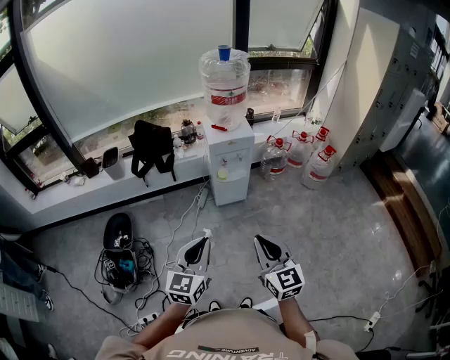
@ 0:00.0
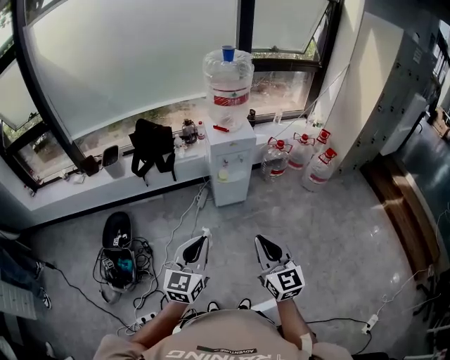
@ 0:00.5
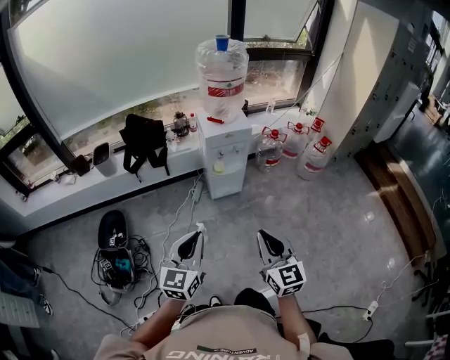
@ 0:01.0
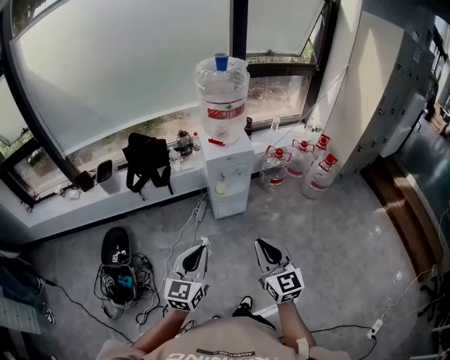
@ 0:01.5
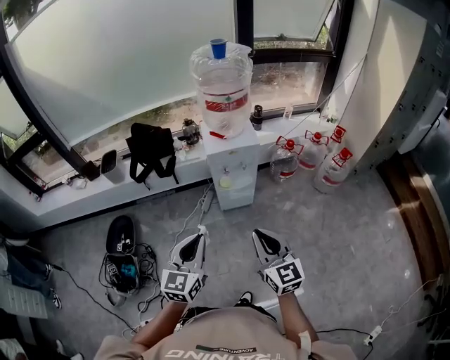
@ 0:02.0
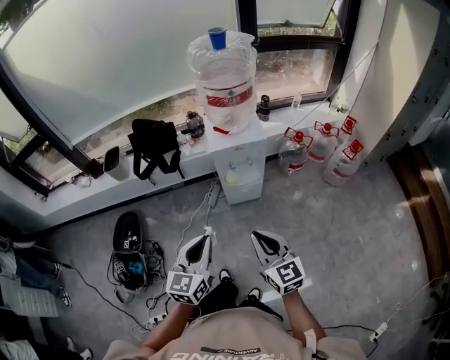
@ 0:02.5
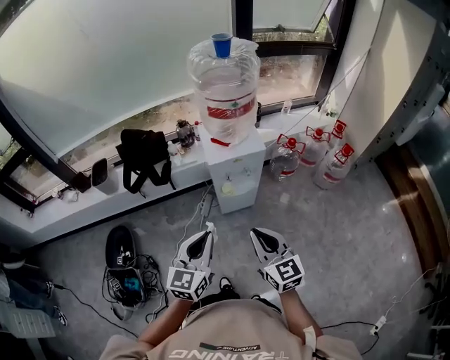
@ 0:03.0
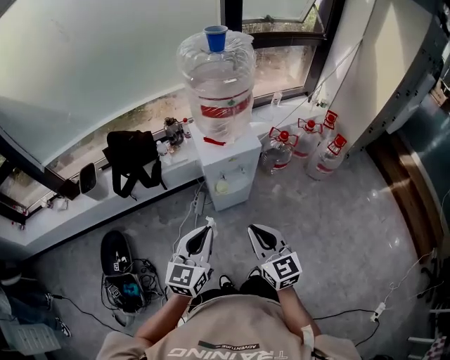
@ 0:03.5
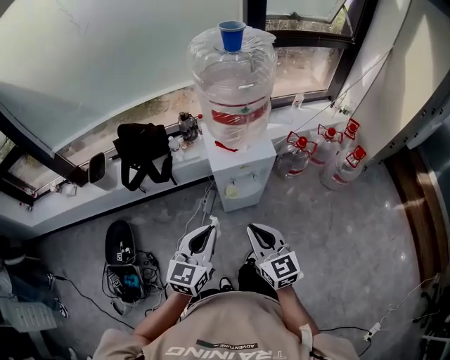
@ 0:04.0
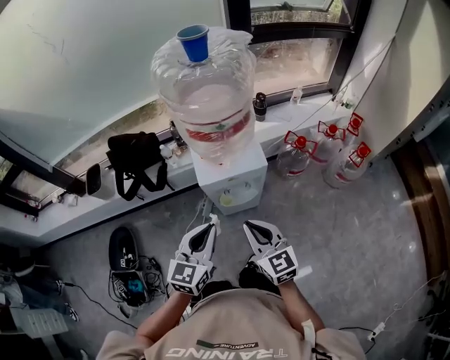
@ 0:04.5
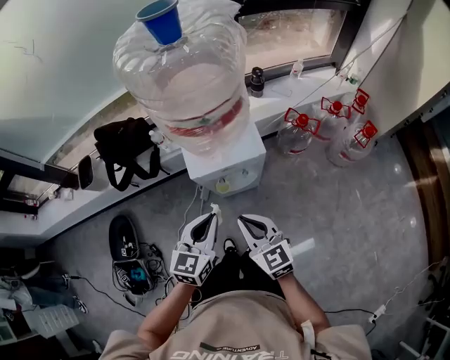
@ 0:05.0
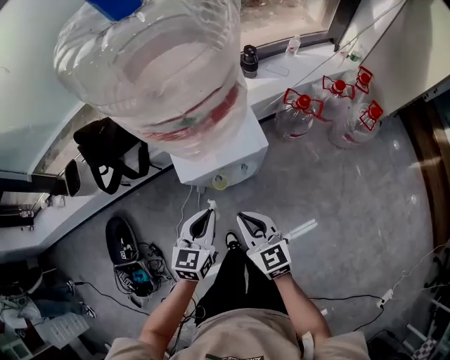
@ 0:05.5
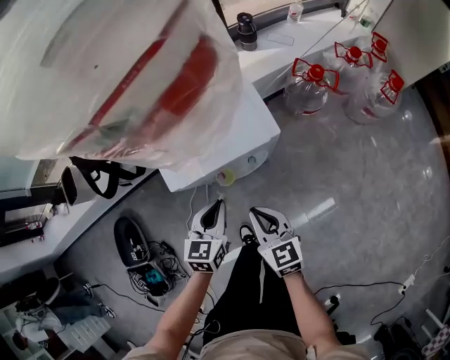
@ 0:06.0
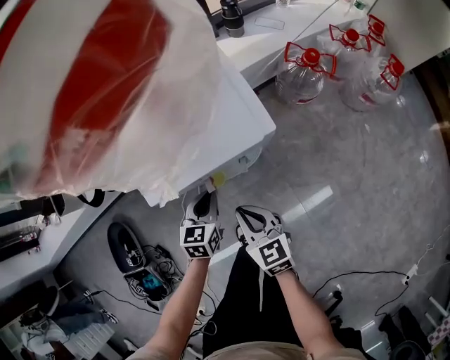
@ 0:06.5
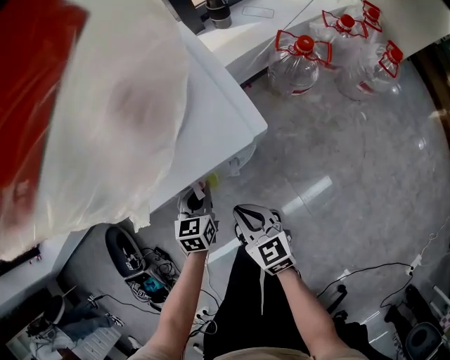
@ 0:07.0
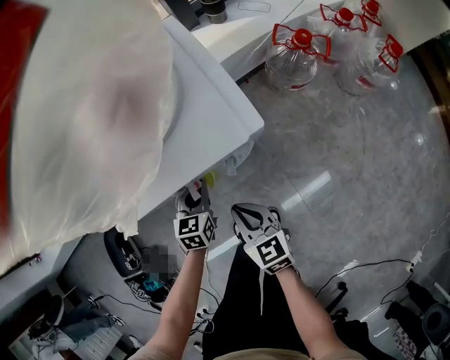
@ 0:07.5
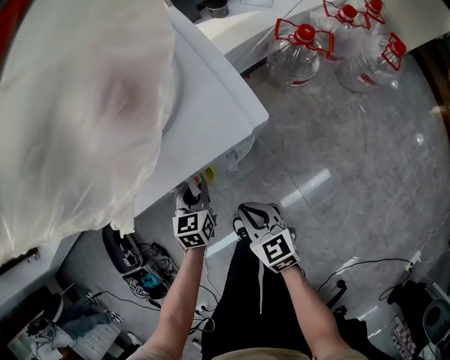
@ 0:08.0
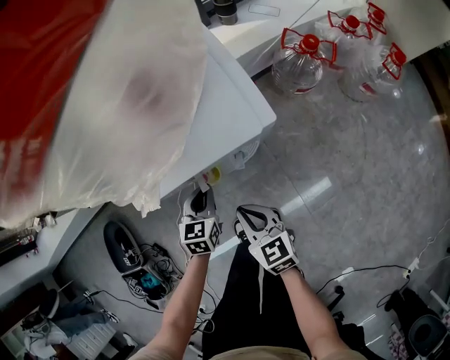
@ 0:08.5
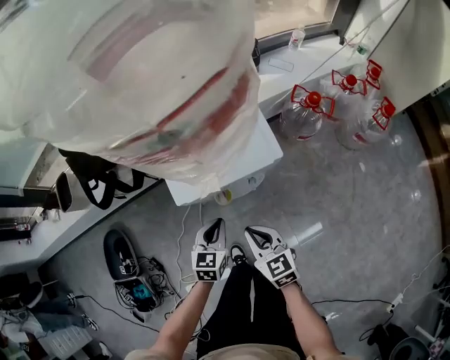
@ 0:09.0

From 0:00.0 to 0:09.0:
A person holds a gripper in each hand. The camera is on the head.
From 0:00.0 to 0:02.0: The two grippers go about 15 cm forward.
From 0:02.0 to 0:04.5: Both grippers move forward, some 30 cm.
From 0:04.5 to 0:07.0: The right gripper heads downward, covering approximately 35 cm, and rotates roughly 20 degrees. Meanwhile the left gripper travels downward and forward by about 50 cm, and changes its angle by roughly 30 degrees.
From 0:07.0 to 0:09.0: The left gripper shifts approximately 10 cm upward and backward. The right gripper is displaced upward by approximately 10 cm.

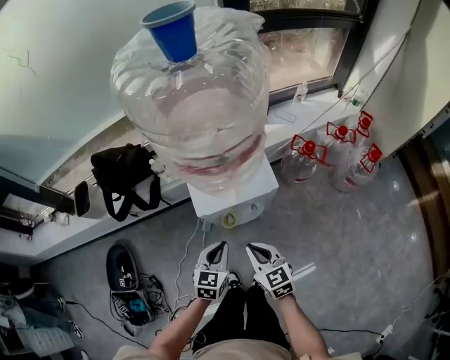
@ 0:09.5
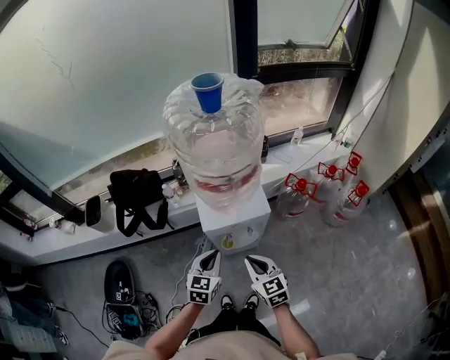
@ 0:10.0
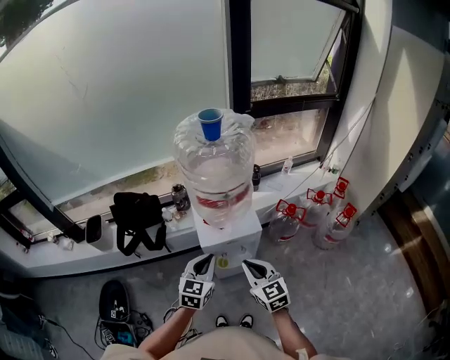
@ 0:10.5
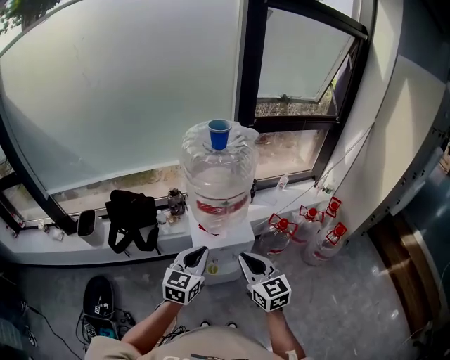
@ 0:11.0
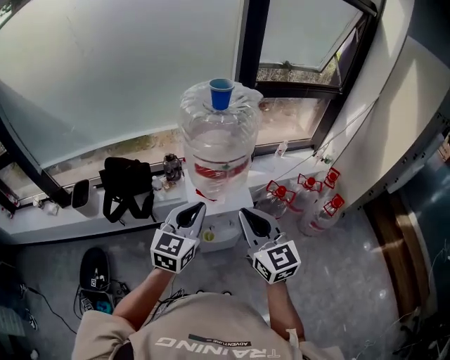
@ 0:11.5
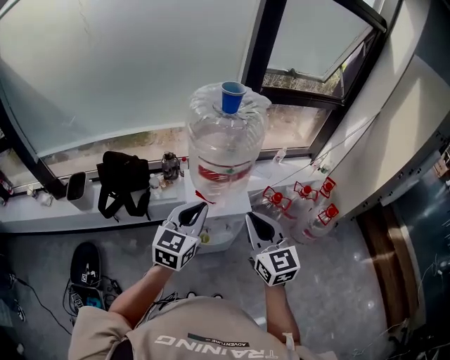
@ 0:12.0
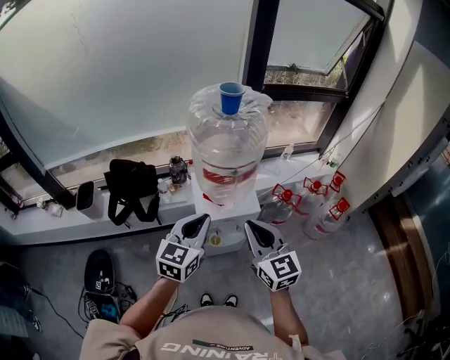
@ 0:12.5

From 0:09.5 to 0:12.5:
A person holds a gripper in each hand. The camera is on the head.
From 0:09.5 to 0:11.0: Both grippers travel together upward, approximately 30 cm.

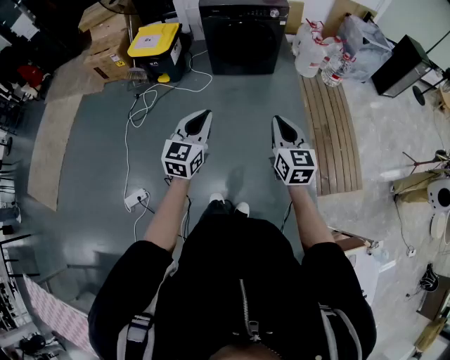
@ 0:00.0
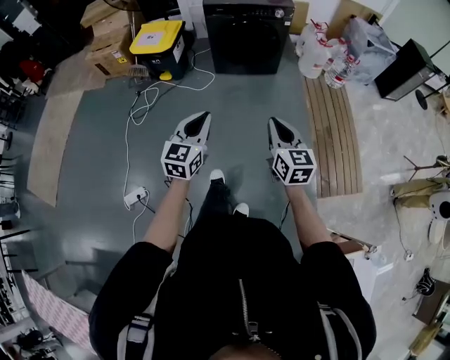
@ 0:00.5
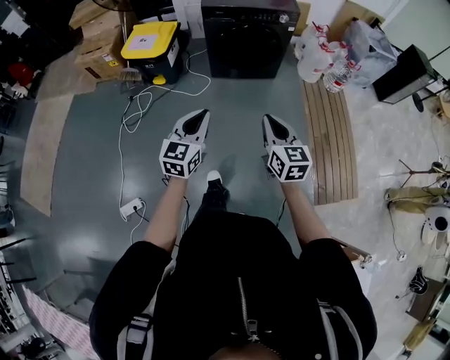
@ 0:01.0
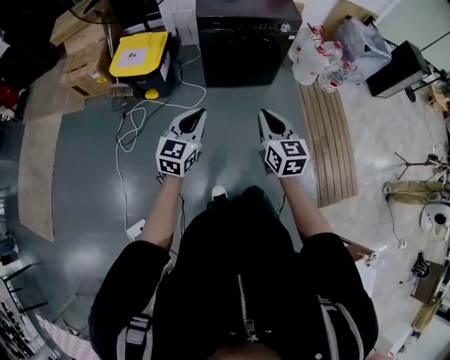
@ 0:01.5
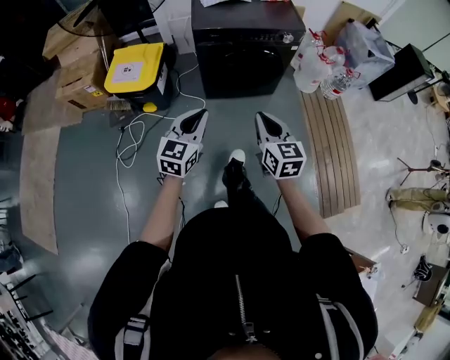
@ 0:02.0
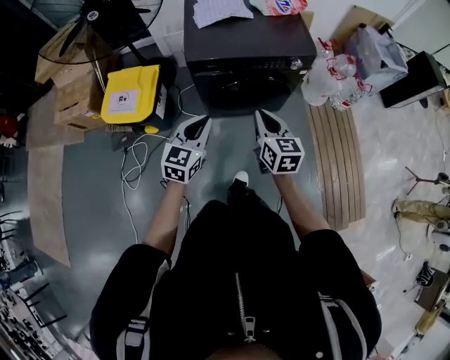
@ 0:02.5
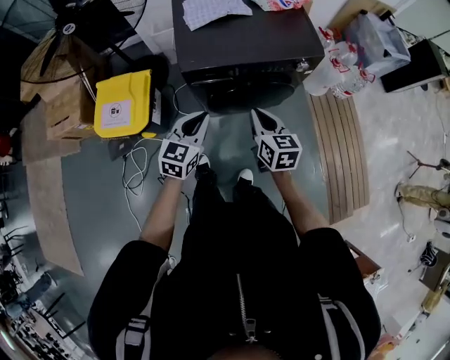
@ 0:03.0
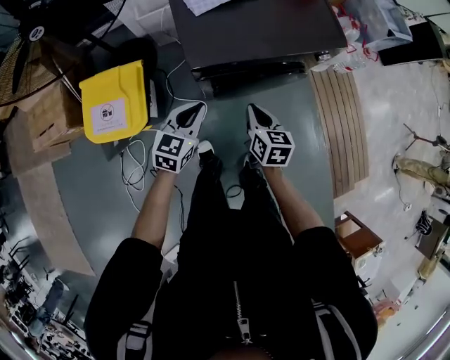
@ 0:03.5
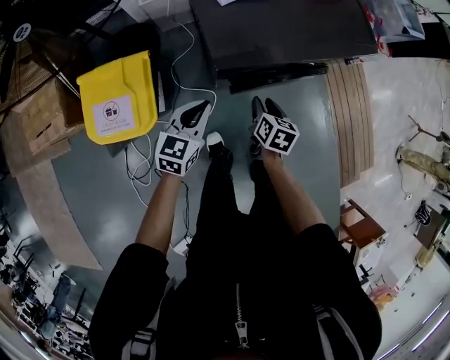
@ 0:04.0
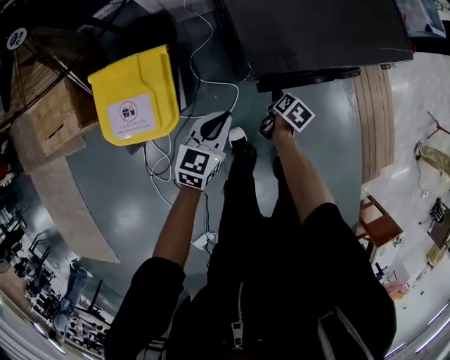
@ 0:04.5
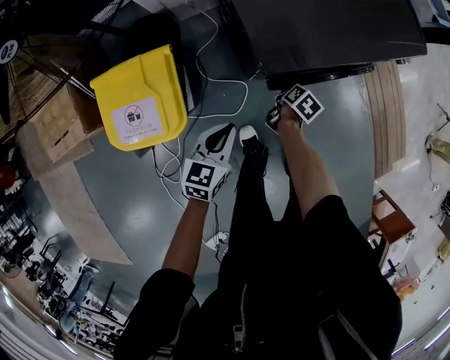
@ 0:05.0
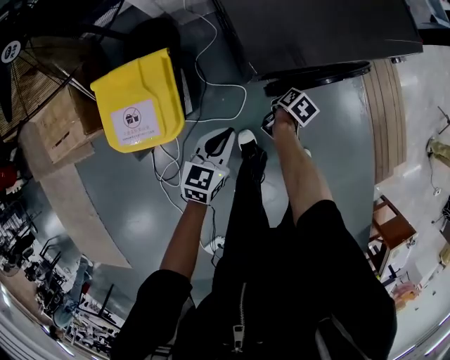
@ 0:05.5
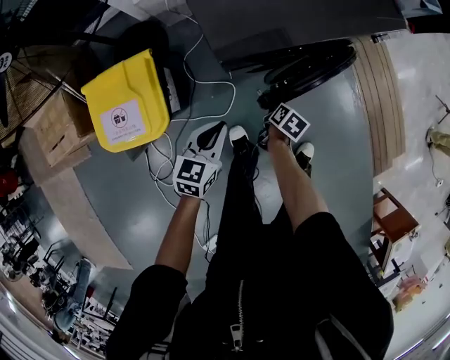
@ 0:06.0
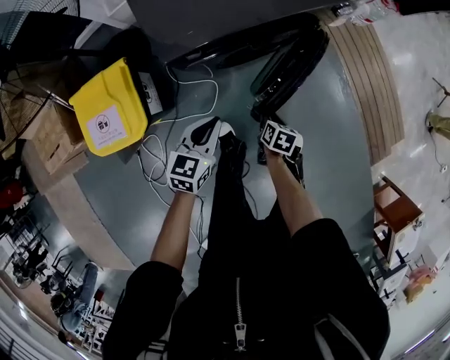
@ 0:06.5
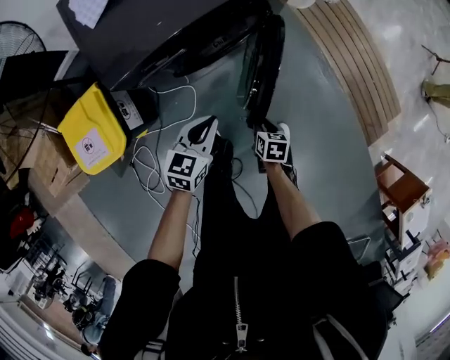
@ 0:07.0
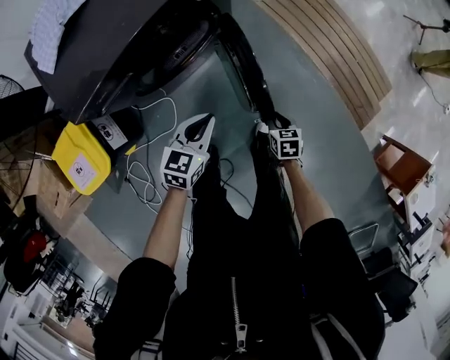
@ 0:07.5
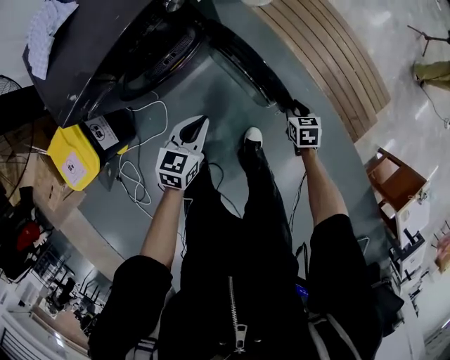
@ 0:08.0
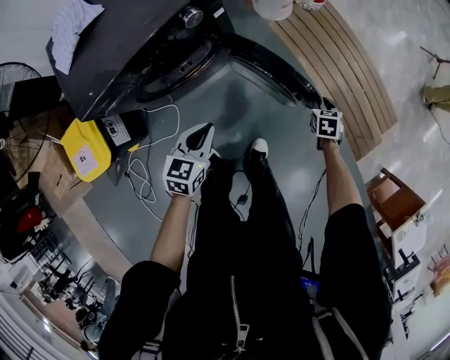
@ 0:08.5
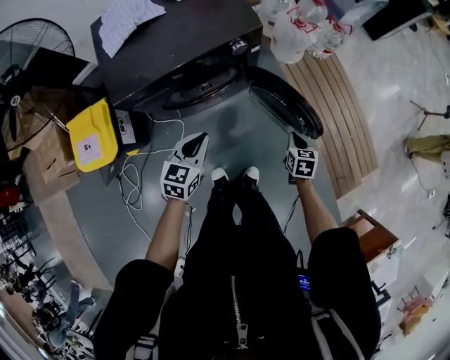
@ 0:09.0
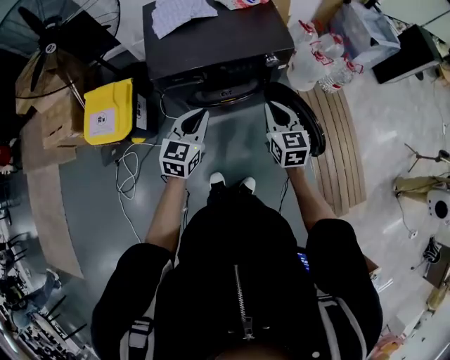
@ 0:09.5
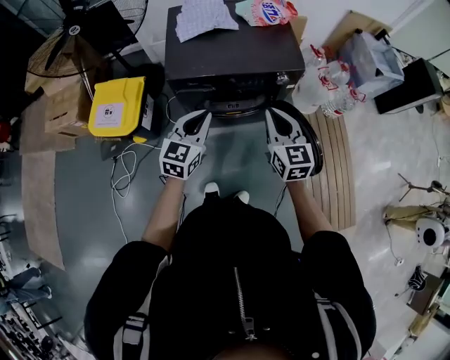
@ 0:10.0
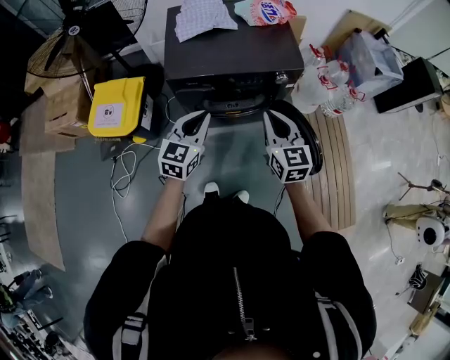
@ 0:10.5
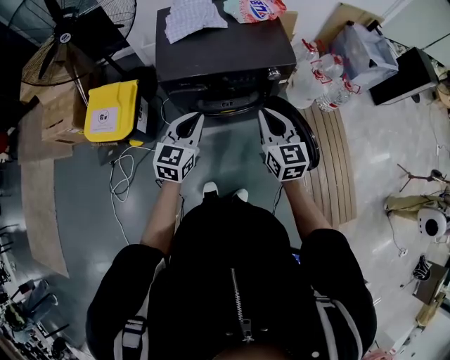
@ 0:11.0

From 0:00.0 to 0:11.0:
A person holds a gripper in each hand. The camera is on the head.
From 0:00.0 to 0:02.0: The pair of grippers is taken forward, roughly 40 cm.
From 0:02.0 to 0:03.5: Both grippers are carried forward, roughly 40 cm. The right gripper moves downward, approximately 15 cm, and rotates about 30 degrees; the left gripper swivels approximately 20 degrees.
From 0:03.5 to 0:05.5: The right gripper shifts some 30 cm downward, changes its angle by some 50 degrees, and opens; the left gripper goes approximately 15 cm downward and to the left.
From 0:05.5 to 0:07.5: The two grippers travel together, to the right, roughly 40 cm. The left gripper turns by about 20 degrees. Meanwhile the right gripper swivels about 30 degrees.
From 0:07.5 to 0:09.0: The right gripper shifts some 20 cm upward and forward, moves approximately 20 cm to the right and comes back, and closes. Meanwhile the left gripper moves upward, about 10 cm, and swivels about 20 degrees.
From 0:09.0 to 0:11.0: The left gripper heads upward and to the left, covering about 20 cm, and rotates some 20 degrees, while the right gripper travels upward and to the left by about 40 cm, and points its fingers some 40 degrees further upward.

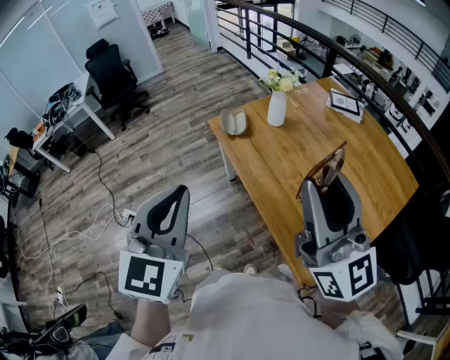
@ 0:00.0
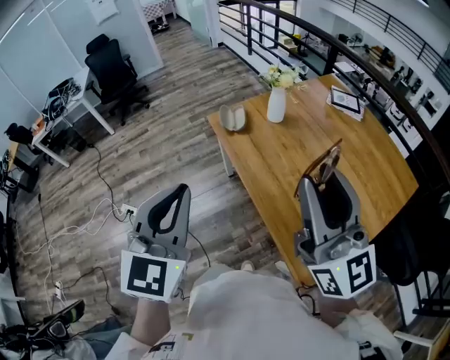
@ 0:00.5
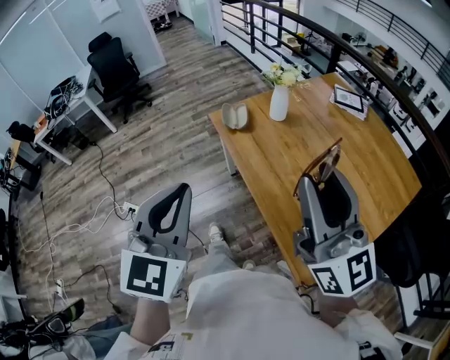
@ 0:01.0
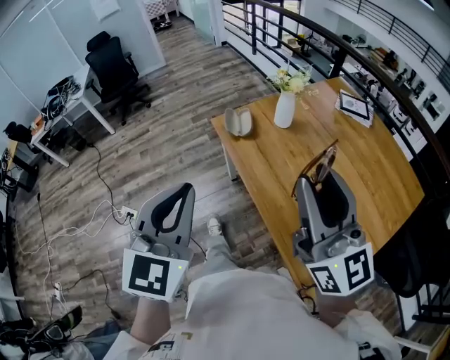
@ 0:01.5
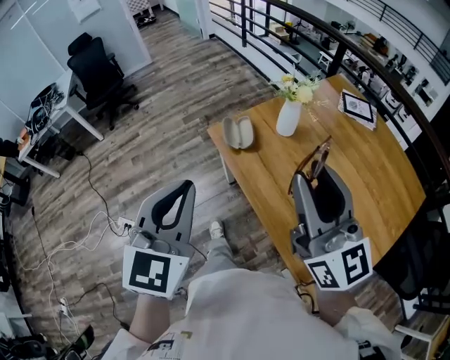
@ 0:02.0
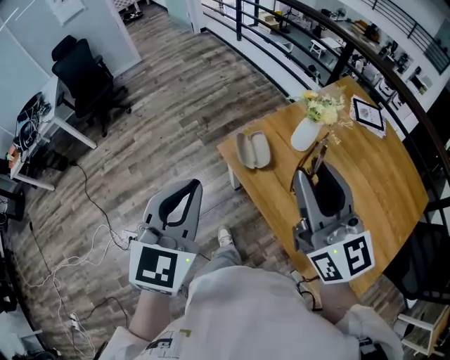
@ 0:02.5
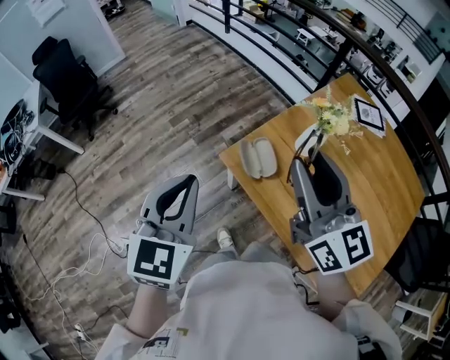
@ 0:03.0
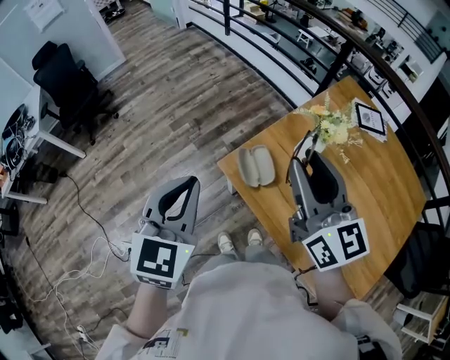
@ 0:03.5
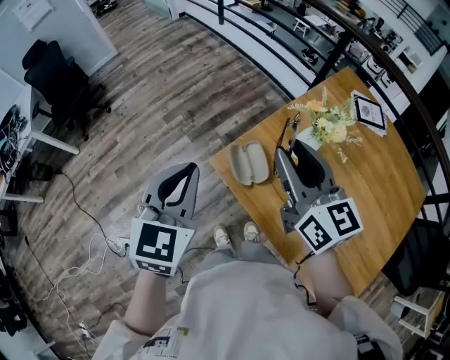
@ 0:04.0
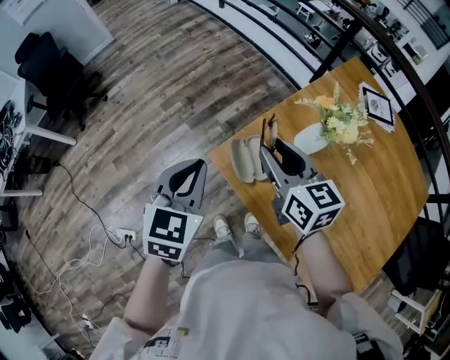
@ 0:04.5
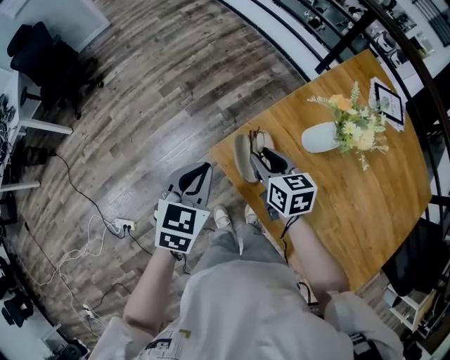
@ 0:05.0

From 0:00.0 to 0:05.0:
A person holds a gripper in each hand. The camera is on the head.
From 0:00.0 to 0:02.5: The two grippers go roughly 35 cm forward.
From 0:02.5 to 0:05.0: The right gripper heads downward and forward, covering roughly 40 cm, and tilts its fingers roughly 40 degrees downward; the left gripper moves forward and downward, some 35 cm, and swivels about 20 degrees.
